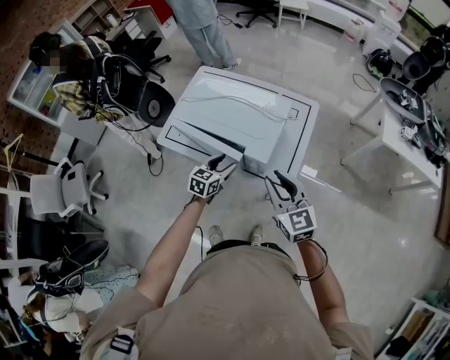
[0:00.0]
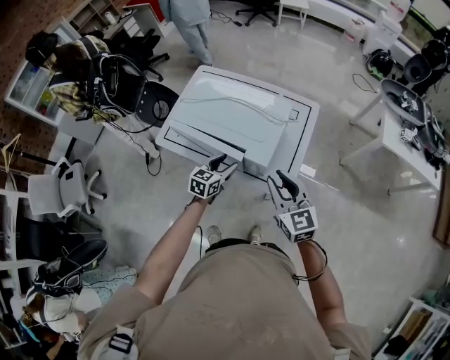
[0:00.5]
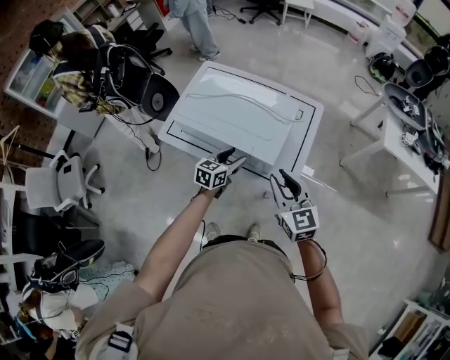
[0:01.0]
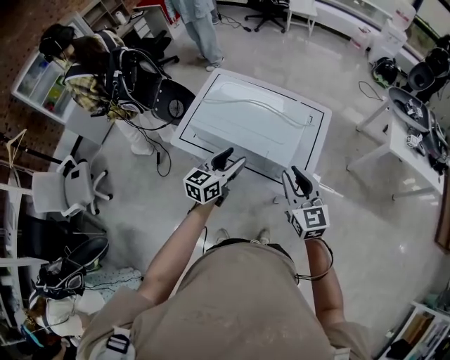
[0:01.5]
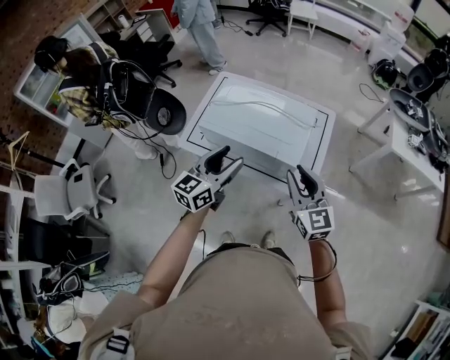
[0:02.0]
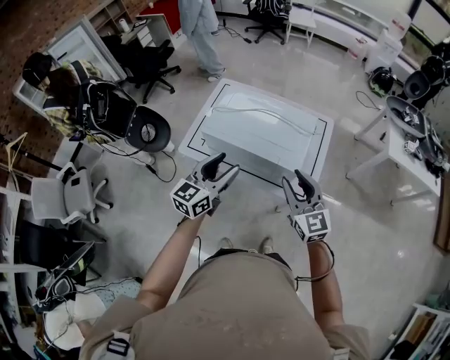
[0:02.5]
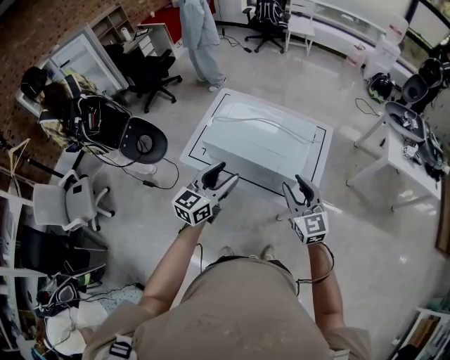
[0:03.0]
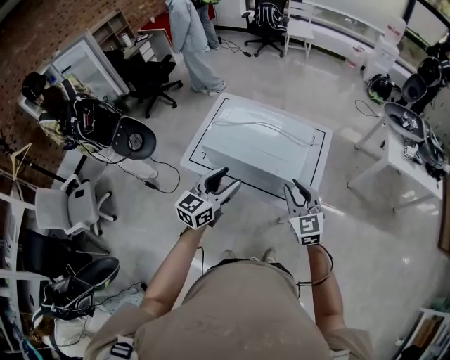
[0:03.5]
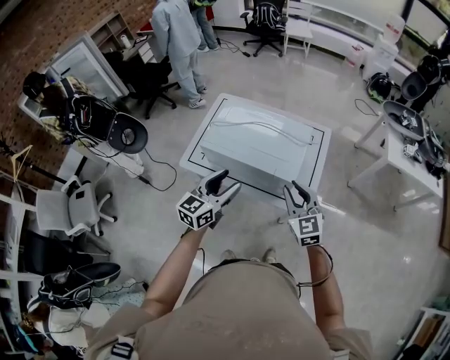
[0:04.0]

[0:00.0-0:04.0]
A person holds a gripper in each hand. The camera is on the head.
0:00.0 to 0:02.0: The left gripper heads upward and to the left, covering approximately 25 cm, and swivels approximately 30 degrees. The right gripper is displaced to the left by roughly 5 cm.
0:02.0 to 0:04.0: The grippers make only small movements.

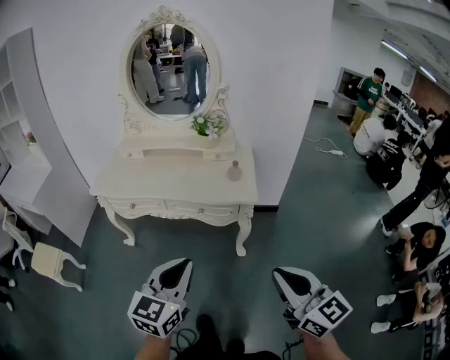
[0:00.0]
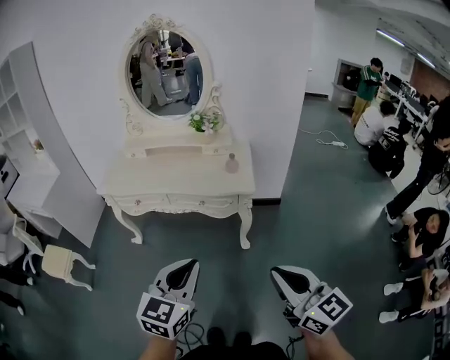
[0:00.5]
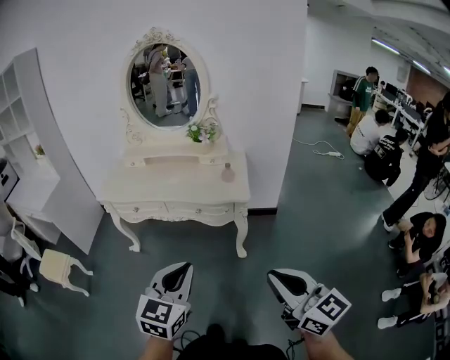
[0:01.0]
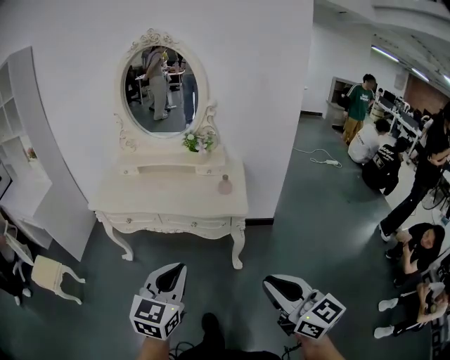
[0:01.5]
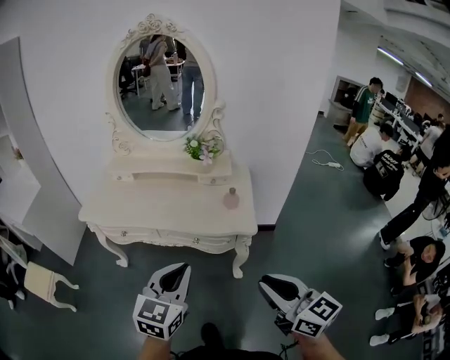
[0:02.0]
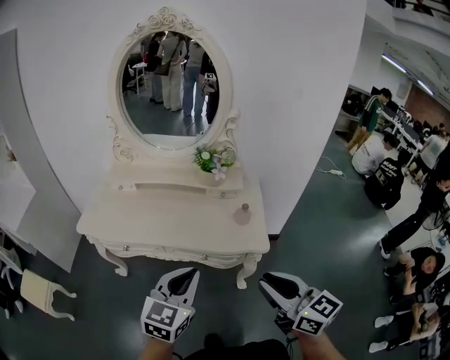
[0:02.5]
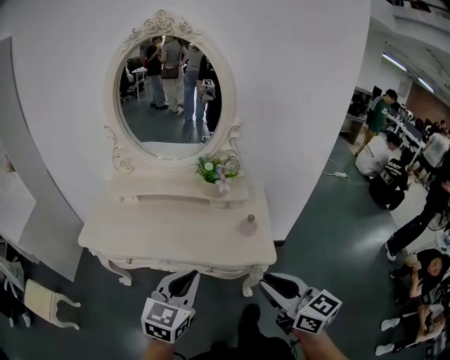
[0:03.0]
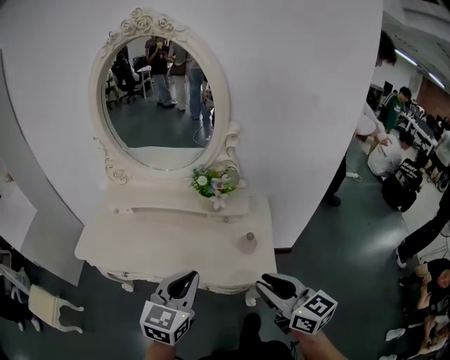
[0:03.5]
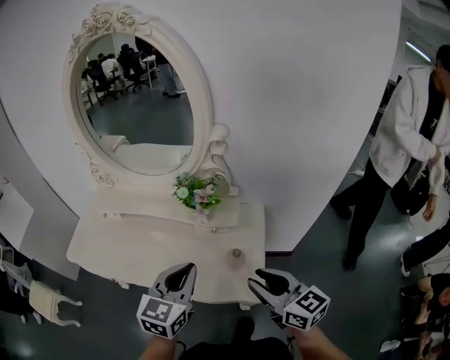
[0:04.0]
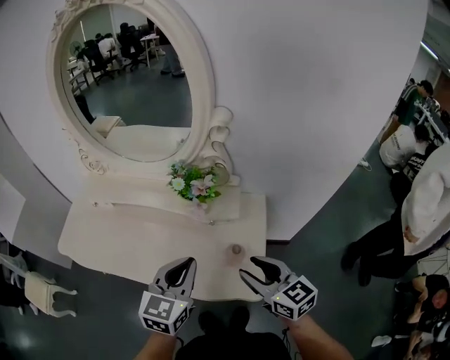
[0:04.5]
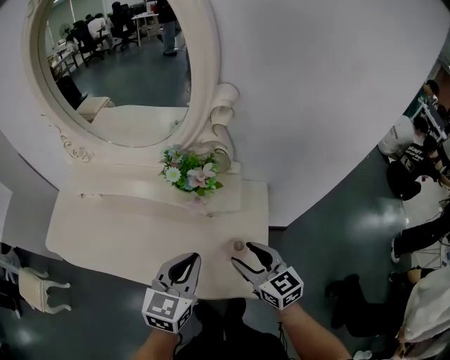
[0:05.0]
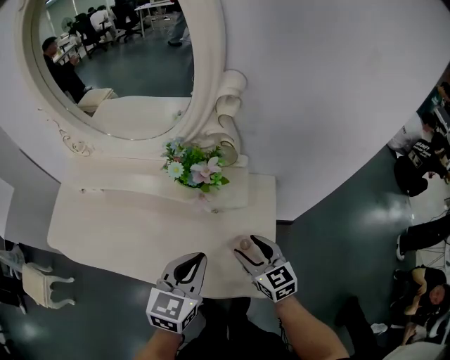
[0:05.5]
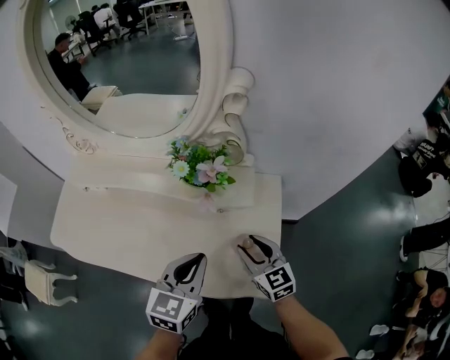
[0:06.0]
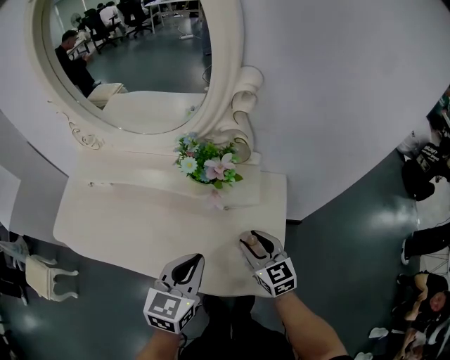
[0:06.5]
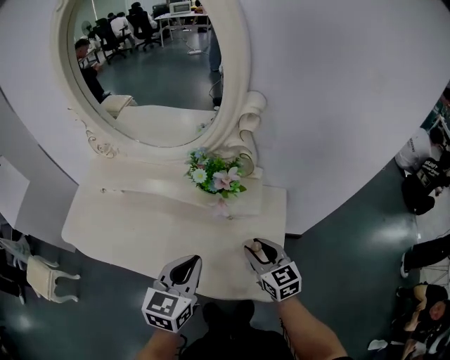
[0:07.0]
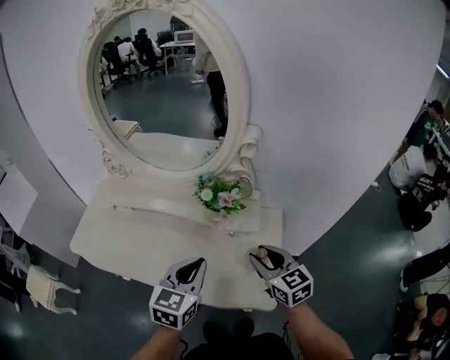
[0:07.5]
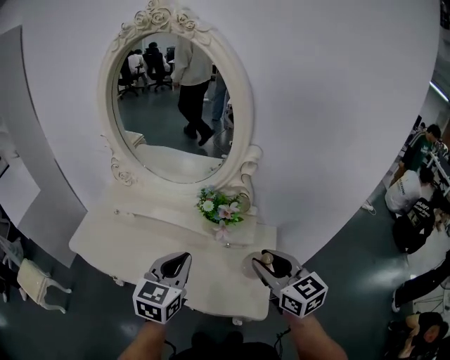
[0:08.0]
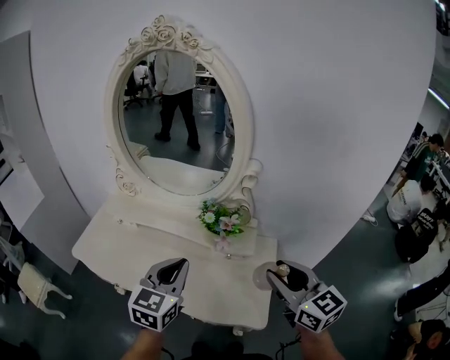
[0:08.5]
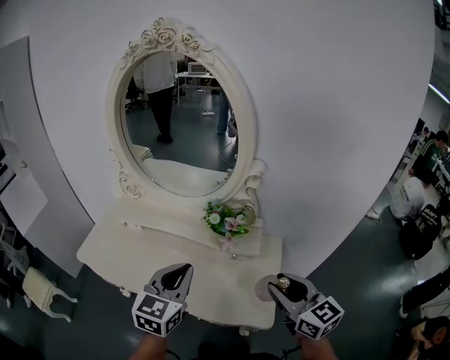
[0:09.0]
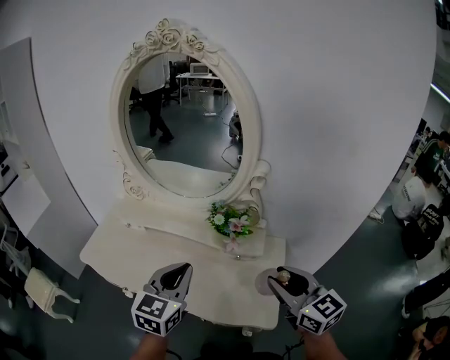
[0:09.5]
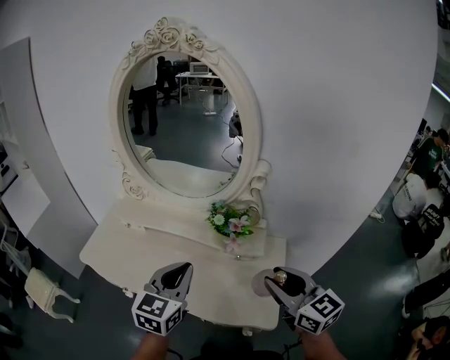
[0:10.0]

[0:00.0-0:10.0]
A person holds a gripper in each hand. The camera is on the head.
0:00.0 to 0:02.0: The two grippers go roughly 15 cm forward.
0:02.0 to 0:04.0: The two grippers go some 35 cm forward.
0:04.0 to 0:06.0: The right gripper moves downward and forward, some 25 cm, while the left gripper shifts about 15 cm downward and forward.
0:06.0 to 0:08.0: The left gripper moves upward and to the left, some 15 cm. The right gripper goes approximately 25 cm upward.

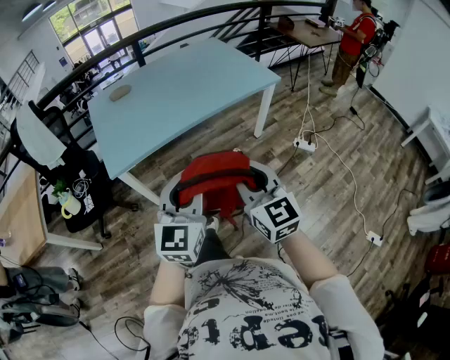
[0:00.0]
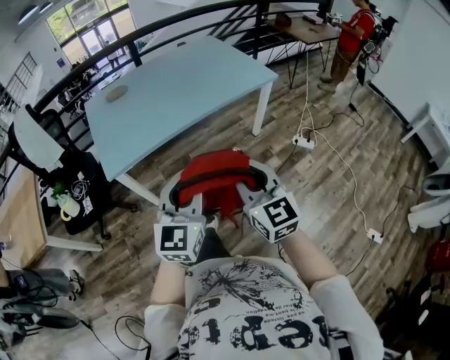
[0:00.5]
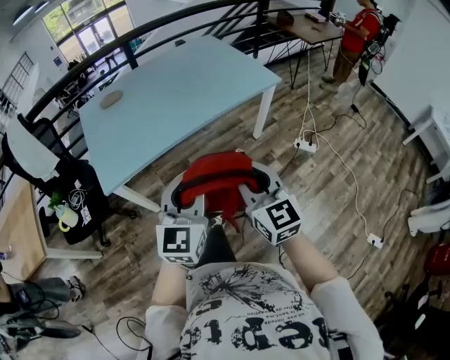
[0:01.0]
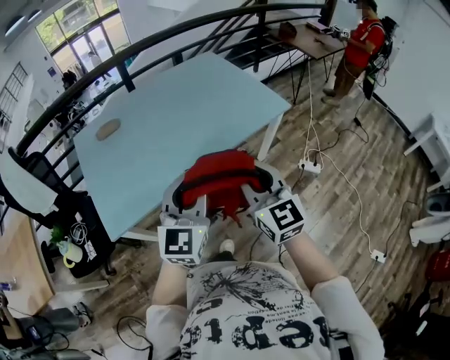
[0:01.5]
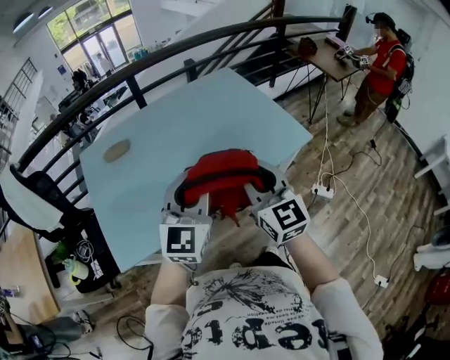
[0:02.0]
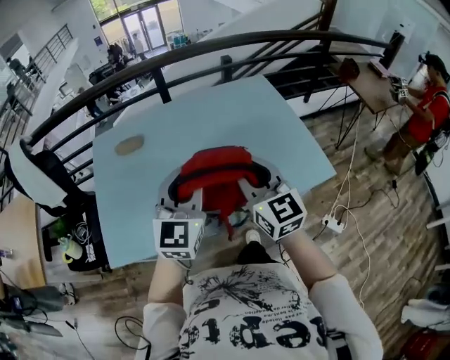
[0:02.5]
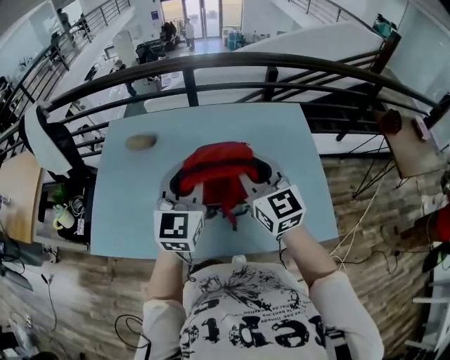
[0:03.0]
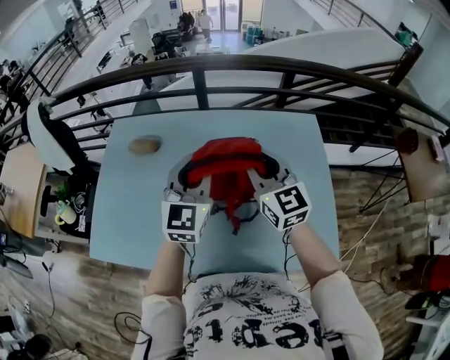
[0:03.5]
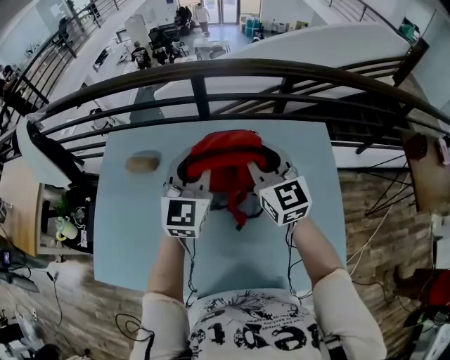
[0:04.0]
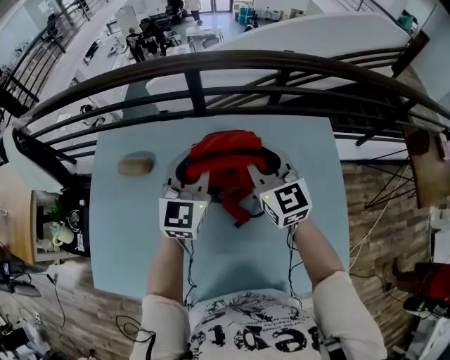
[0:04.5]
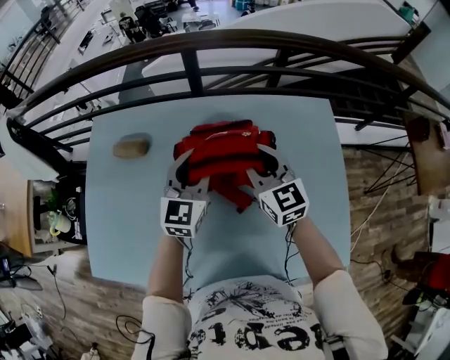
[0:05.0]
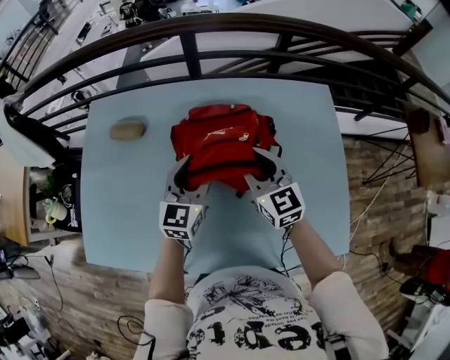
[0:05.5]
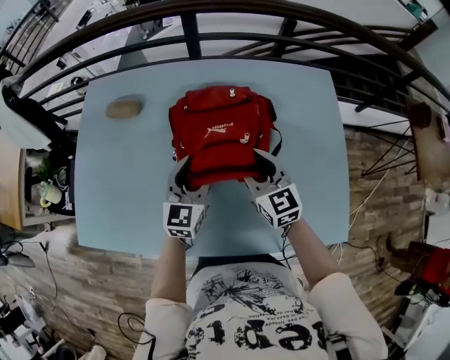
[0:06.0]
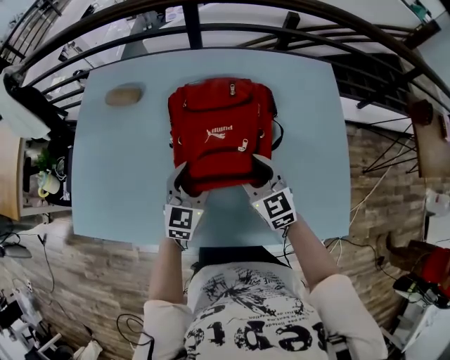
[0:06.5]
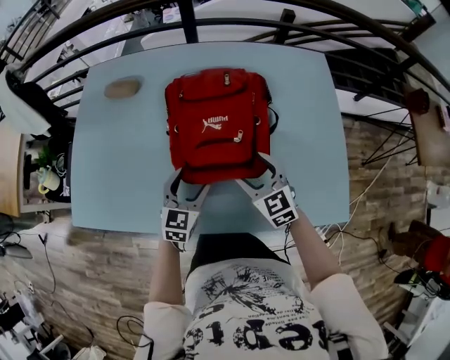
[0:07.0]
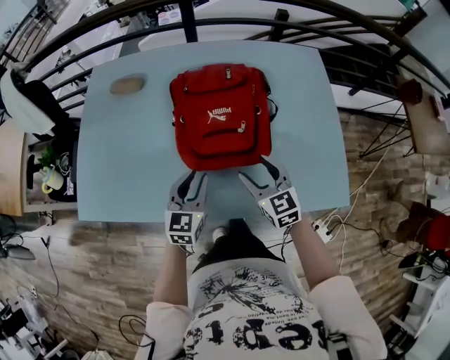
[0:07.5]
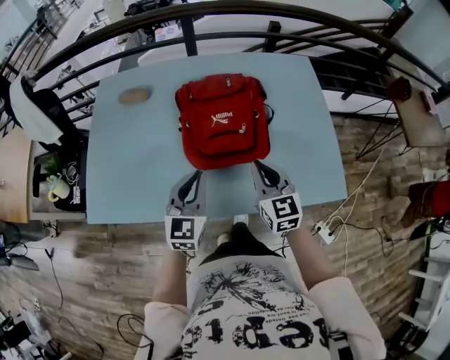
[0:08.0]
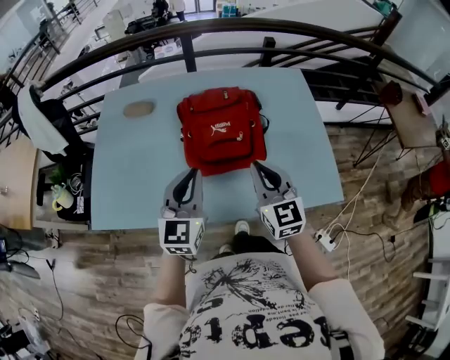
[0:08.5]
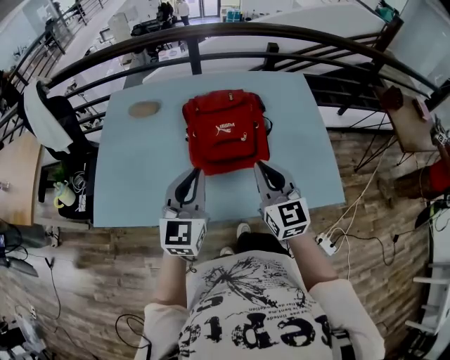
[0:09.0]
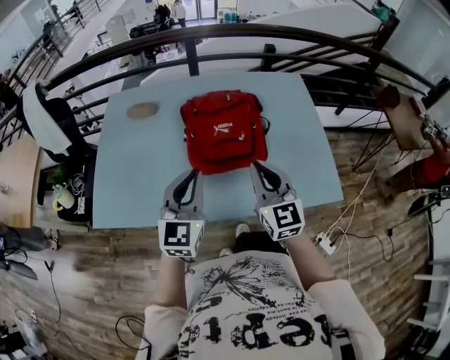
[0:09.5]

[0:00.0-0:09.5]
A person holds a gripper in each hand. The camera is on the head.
0:00.0 to 0:02.0: Both grippers are carried forward, roughly 50 cm.
0:02.0 to 0:04.0: The pair of grippers is taken roughly 60 cm. The right gripper swivels some 30 degrees, while the left gripper turns by about 30 degrees.
0:04.0 to 0:05.5: Both grippers move downward, approximately 15 cm. The left gripper opens.
0:05.5 to 0:07.5: The two grippers go about 25 cm backward. The right gripper opens its fingers, while the left gripper opens, then closes once more.
0:07.5 to 0:09.5: The left gripper heads upward, covering about 20 cm, while the right gripper shifts roughly 20 cm upward and backward, rotates about 20 degrees, and closes up.

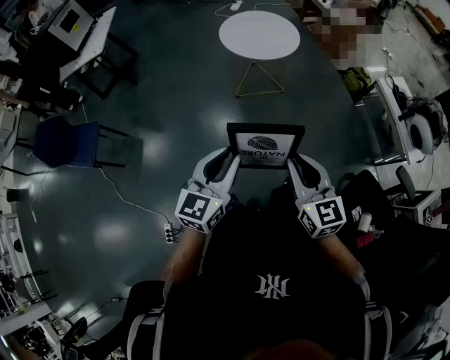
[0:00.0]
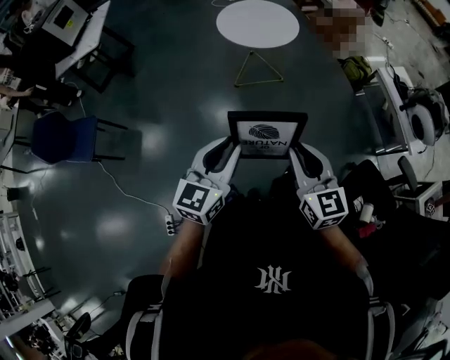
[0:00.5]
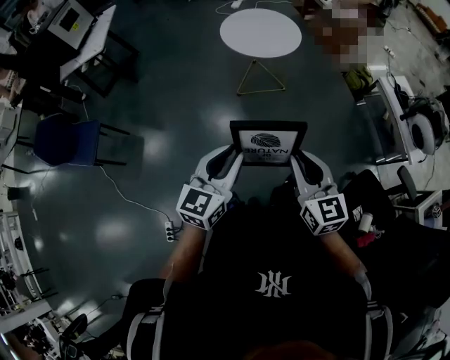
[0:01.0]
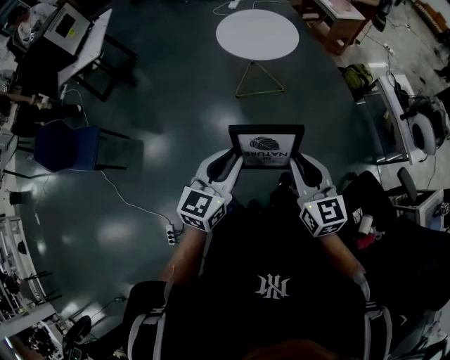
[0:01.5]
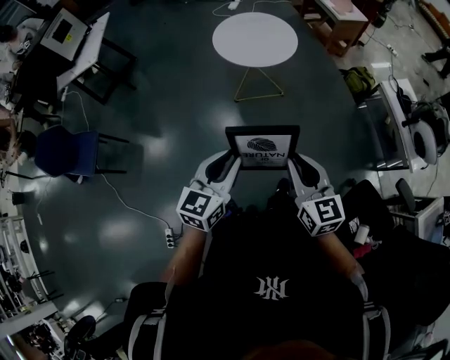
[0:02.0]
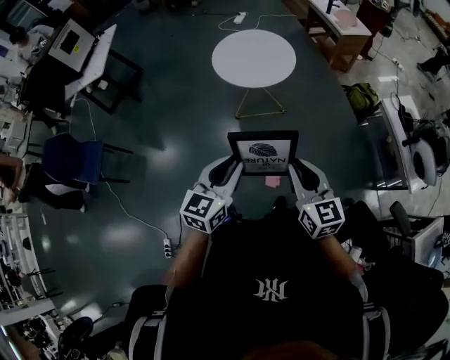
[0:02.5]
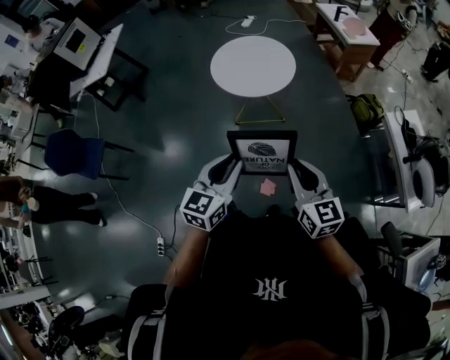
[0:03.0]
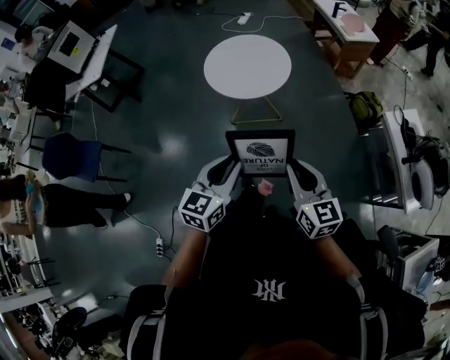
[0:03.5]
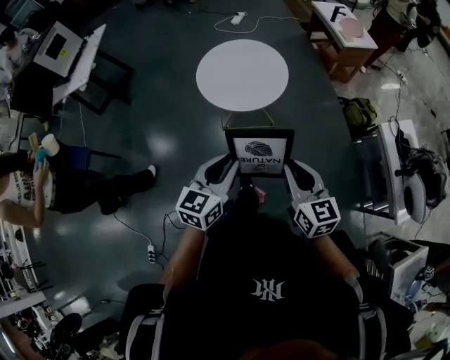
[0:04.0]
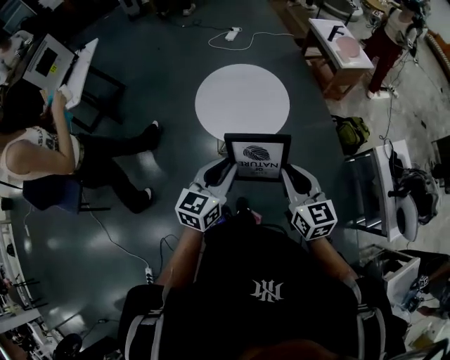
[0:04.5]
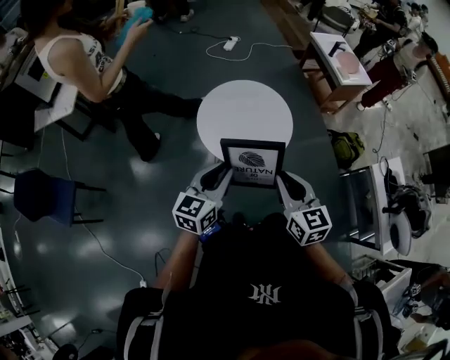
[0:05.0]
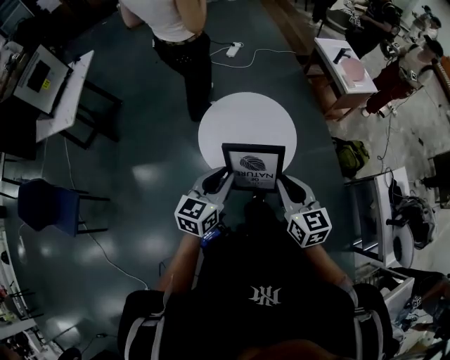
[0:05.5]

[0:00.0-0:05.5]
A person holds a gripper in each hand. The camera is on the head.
0:00.0 to 0:02.0: Both grippers travel together forward, roughly 10 cm.
0:02.0 to 0:03.5: The right gripper travels forward and to the right by about 20 cm; the left gripper heads to the right and forward, covering roughly 20 cm.
0:03.5 to 0:05.5: The two grippers travel together, forward, some 40 cm.
